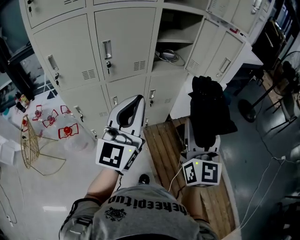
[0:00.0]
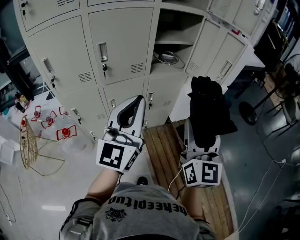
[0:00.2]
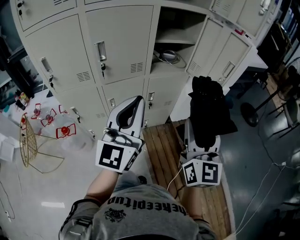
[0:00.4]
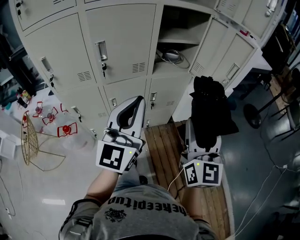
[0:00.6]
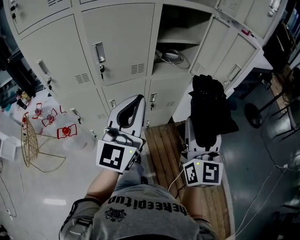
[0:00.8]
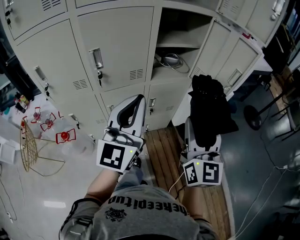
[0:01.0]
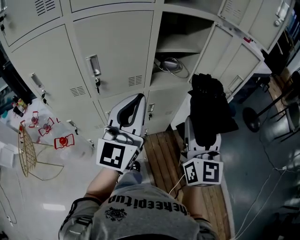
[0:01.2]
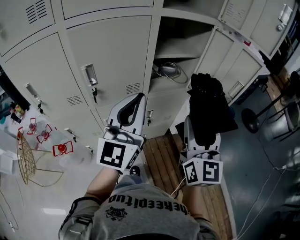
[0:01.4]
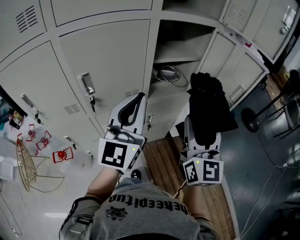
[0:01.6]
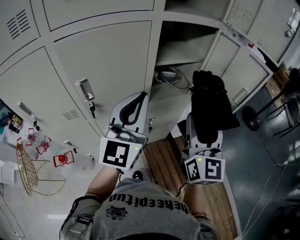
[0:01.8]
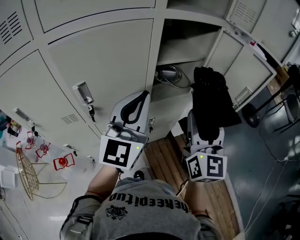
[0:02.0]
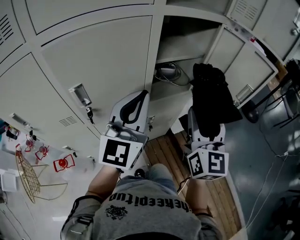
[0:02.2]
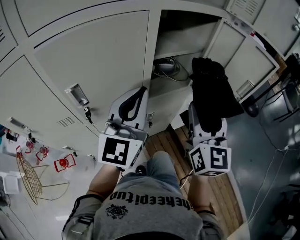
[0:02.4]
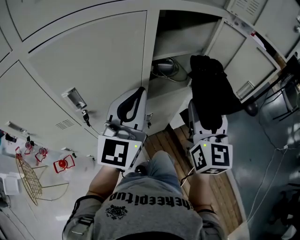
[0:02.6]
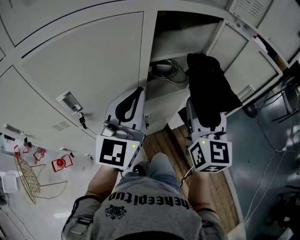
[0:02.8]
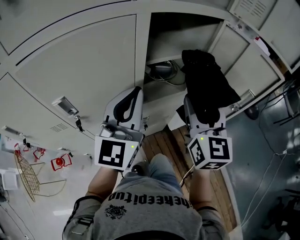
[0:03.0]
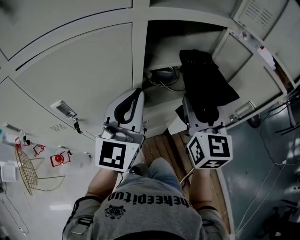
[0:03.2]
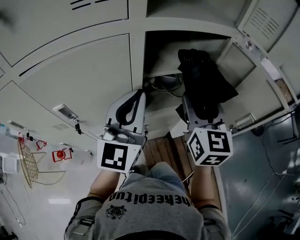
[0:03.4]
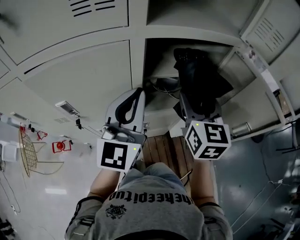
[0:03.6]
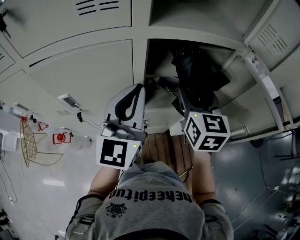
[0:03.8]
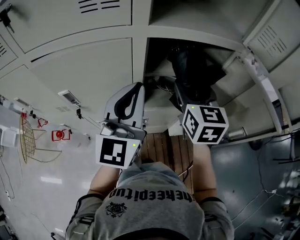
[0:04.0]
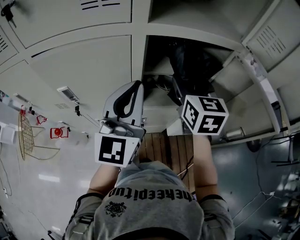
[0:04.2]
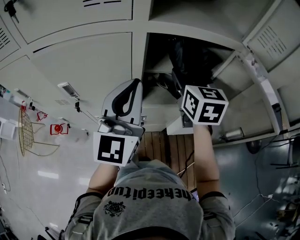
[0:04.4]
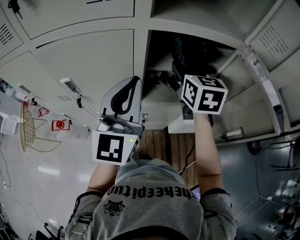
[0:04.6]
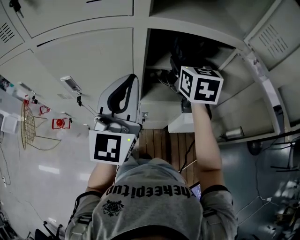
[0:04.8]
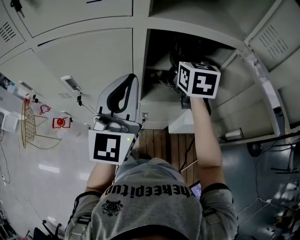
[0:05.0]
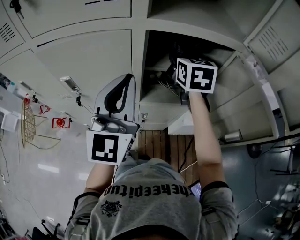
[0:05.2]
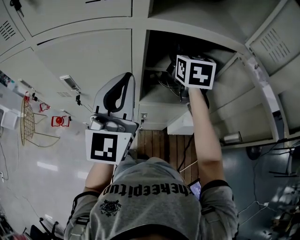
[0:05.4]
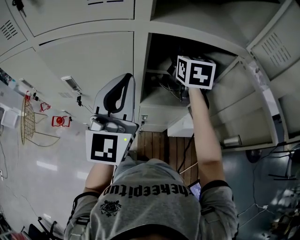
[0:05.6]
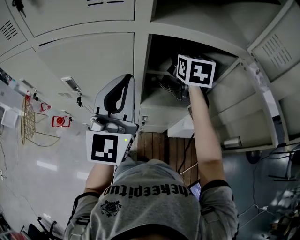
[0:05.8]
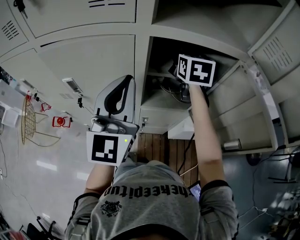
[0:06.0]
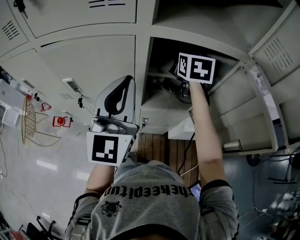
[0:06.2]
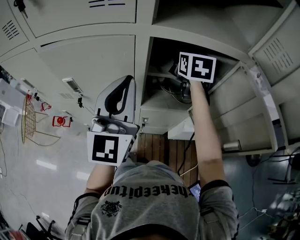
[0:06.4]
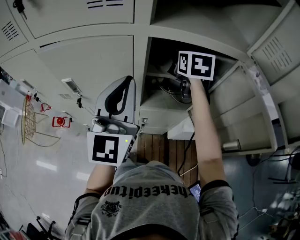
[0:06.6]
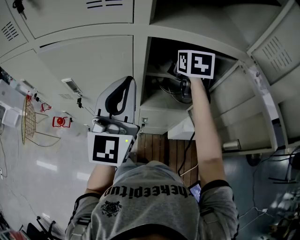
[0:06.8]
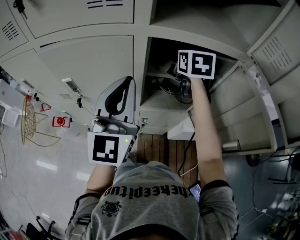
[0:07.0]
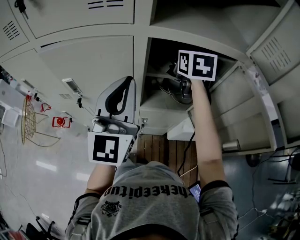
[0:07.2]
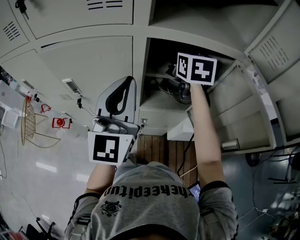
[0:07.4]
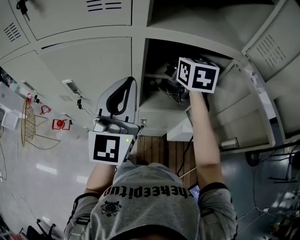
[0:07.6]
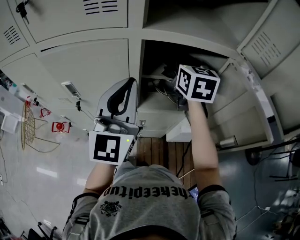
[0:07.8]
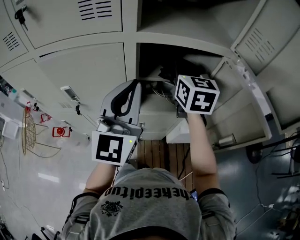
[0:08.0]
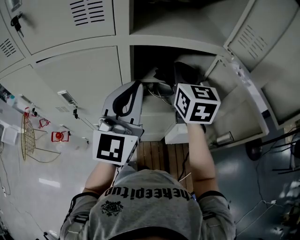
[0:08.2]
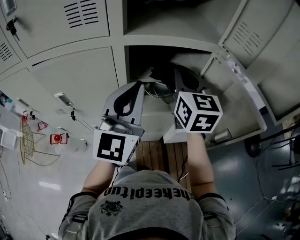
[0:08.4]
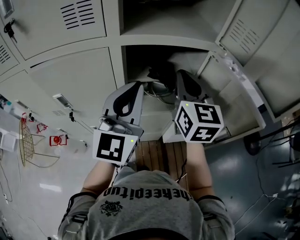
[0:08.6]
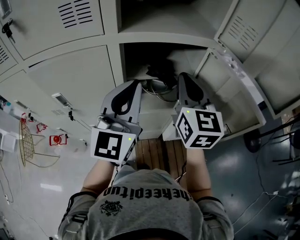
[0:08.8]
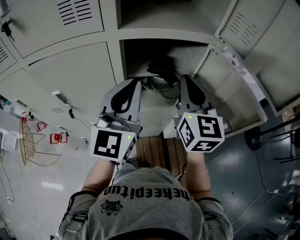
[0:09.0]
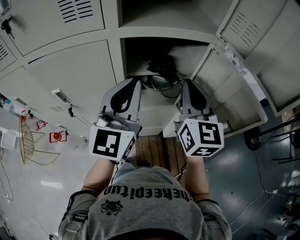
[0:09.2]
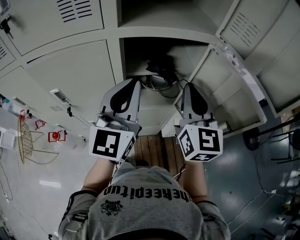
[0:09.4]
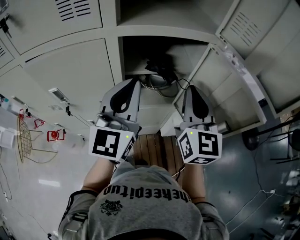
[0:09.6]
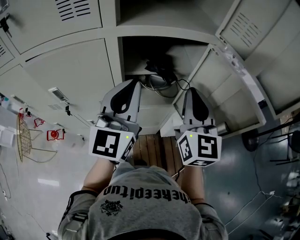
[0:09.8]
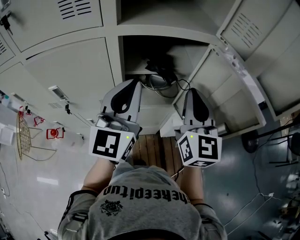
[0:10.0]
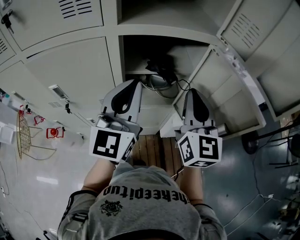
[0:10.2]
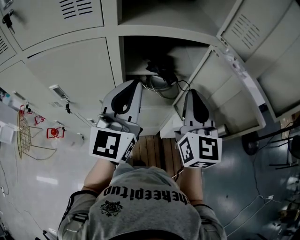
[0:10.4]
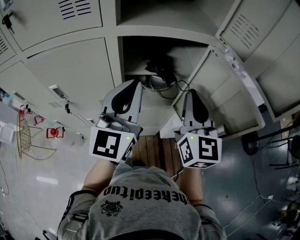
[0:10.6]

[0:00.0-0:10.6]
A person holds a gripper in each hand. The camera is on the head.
0:00.0 to 0:01.6: Both grippers travel together forward, some 25 cm.
0:01.6 to 0:03.0: The grippers both shift forward by roughly 15 cm.
0:03.0 to 0:04.6: The left gripper travels upward by approximately 5 cm, and turns by some 20 degrees; the right gripper travels forward by some 15 cm, and swivels roughly 30 degrees.
0:04.6 to 0:06.0: The right gripper shifts some 10 cm forward.
0:06.0 to 0:07.6: The grippers make only small movements.
0:07.6 to 0:09.0: The right gripper goes roughly 15 cm backward and to the right, swivels some 20 degrees, and closes its fingers. Meanwhile the left gripper heads to the right, covering approximately 5 cm.
0:09.0 to 0:10.6: The grippers make only small movements.

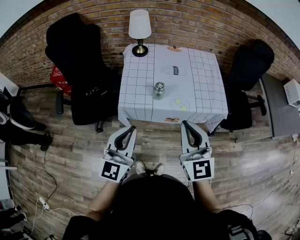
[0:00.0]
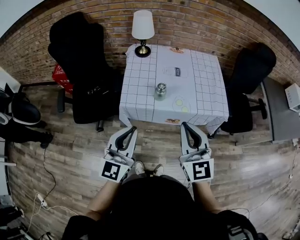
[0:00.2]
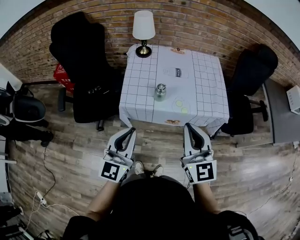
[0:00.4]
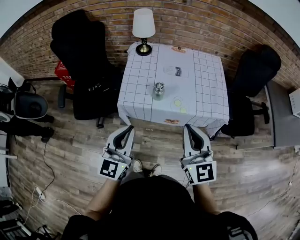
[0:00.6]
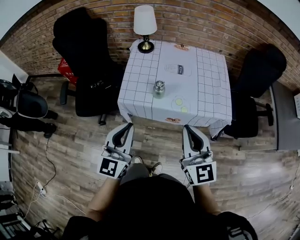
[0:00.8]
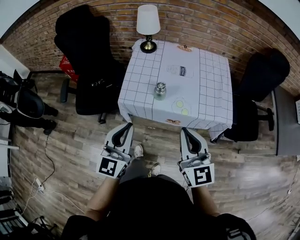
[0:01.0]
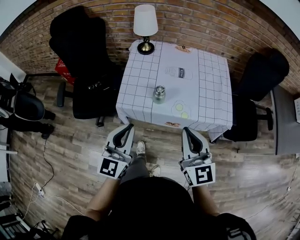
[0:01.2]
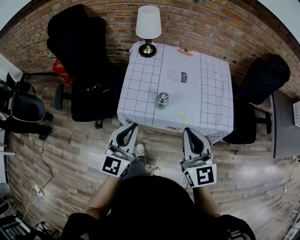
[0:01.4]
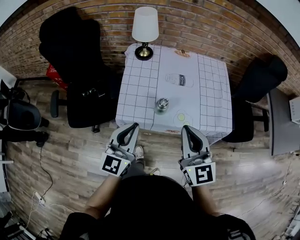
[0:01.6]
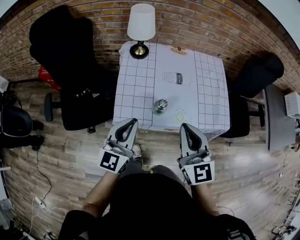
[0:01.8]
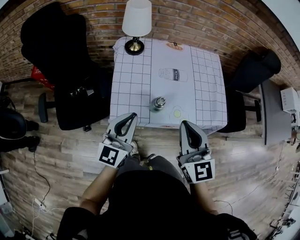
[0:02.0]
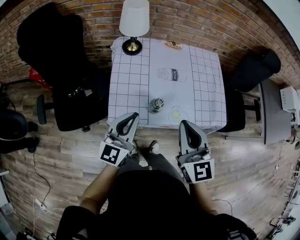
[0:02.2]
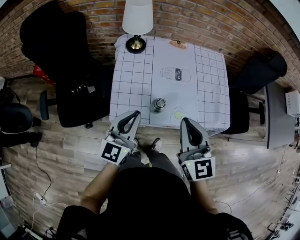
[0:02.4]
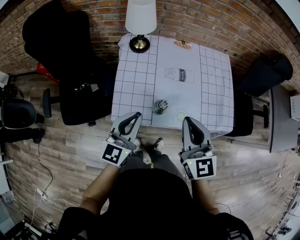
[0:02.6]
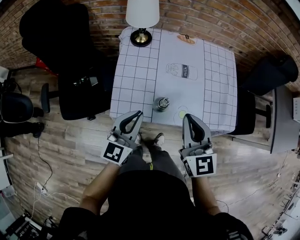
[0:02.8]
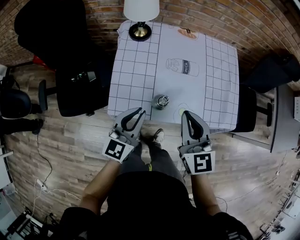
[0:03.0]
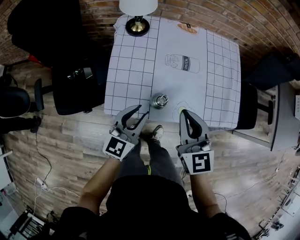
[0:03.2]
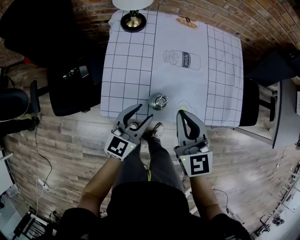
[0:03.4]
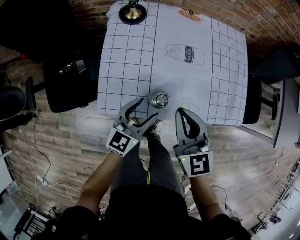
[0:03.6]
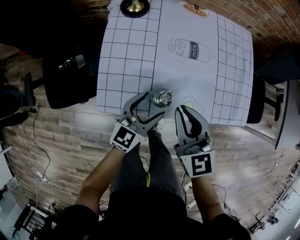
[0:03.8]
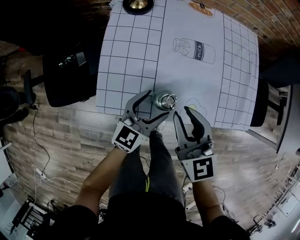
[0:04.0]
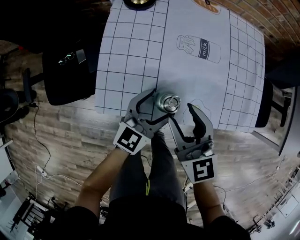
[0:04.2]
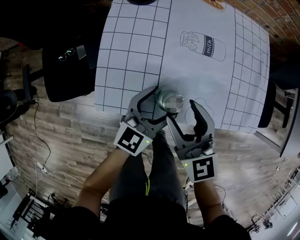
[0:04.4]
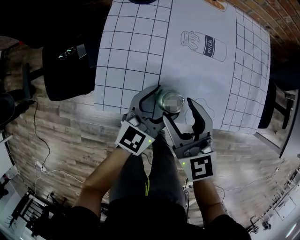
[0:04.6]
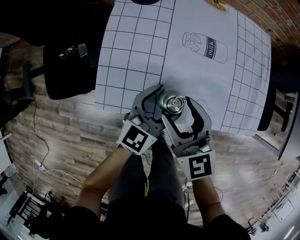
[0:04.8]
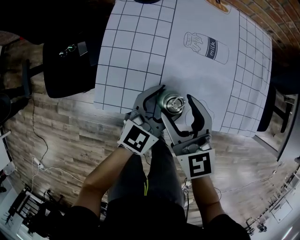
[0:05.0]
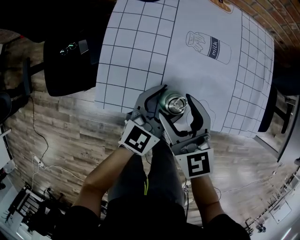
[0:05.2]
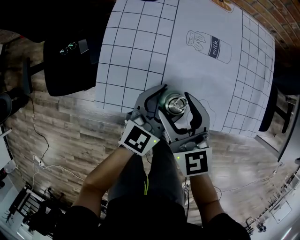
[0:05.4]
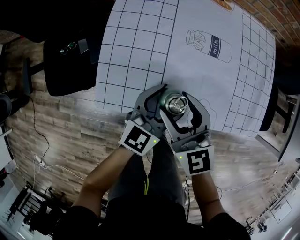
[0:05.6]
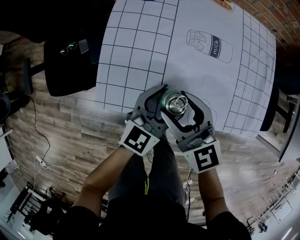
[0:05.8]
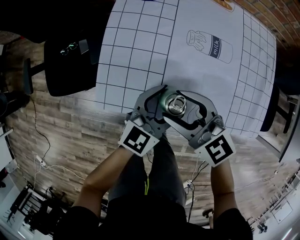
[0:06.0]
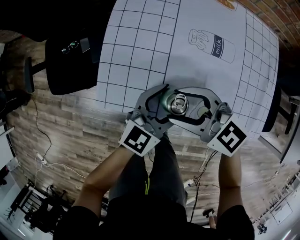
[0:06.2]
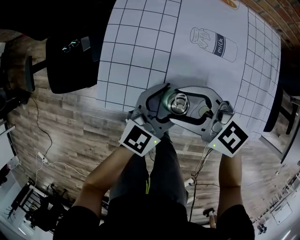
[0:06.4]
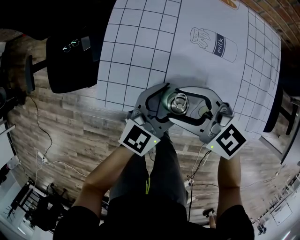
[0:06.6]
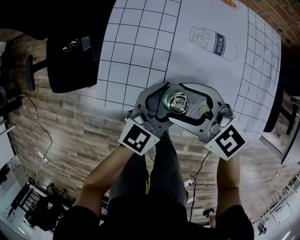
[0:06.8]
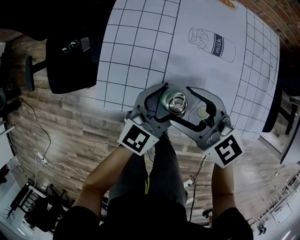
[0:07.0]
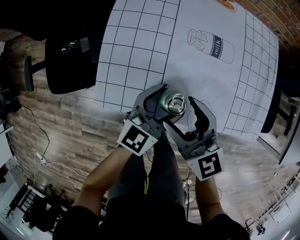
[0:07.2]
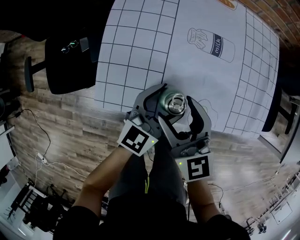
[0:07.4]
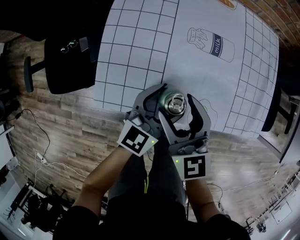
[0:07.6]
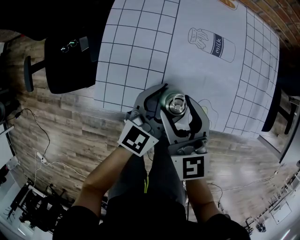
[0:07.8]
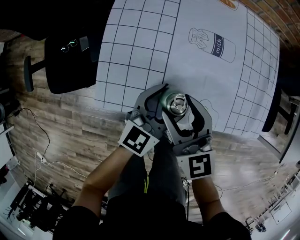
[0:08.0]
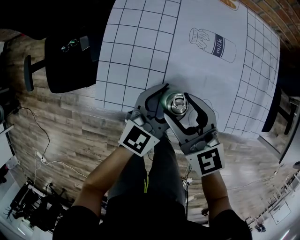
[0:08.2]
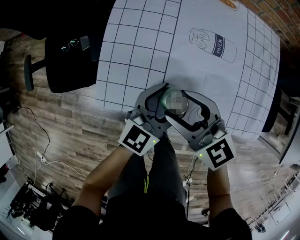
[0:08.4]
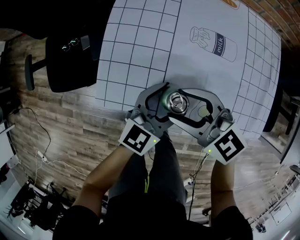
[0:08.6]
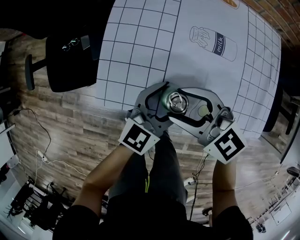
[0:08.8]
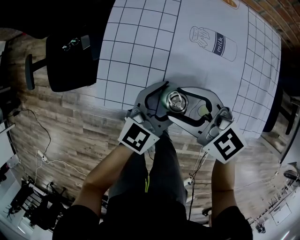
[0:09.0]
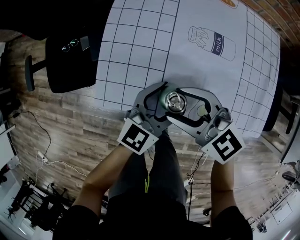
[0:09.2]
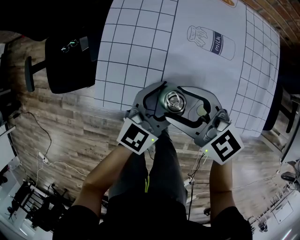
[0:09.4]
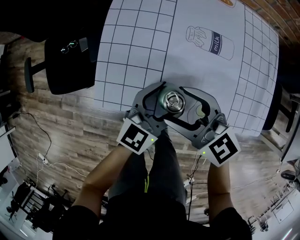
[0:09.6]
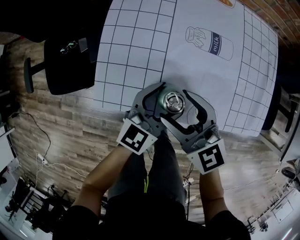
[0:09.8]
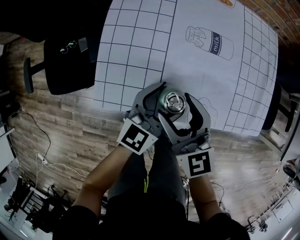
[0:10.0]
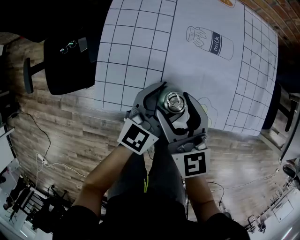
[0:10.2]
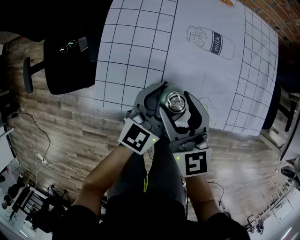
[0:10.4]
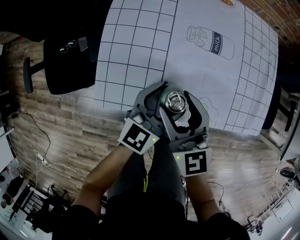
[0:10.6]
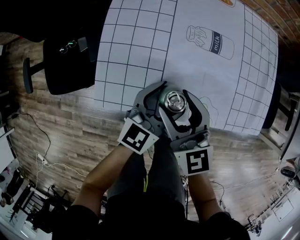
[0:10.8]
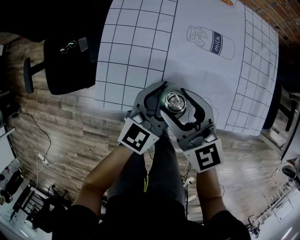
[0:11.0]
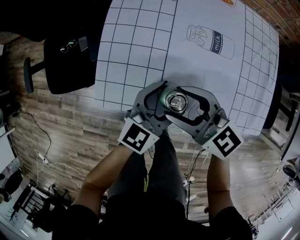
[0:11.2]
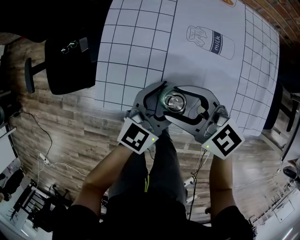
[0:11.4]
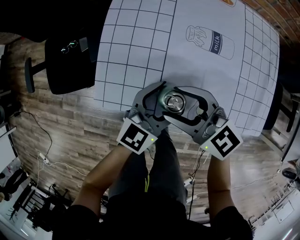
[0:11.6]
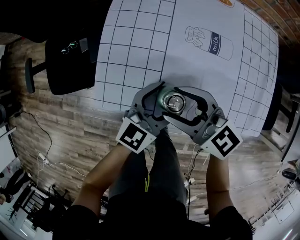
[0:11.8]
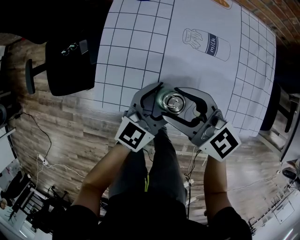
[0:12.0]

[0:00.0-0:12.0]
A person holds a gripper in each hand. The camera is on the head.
0:00.0 to 0:01.6: Both grippers move forward, roughly 15 cm.
0:01.6 to 0:03.0: Both grippers travel together forward and downward, roughly 15 cm.
0:03.0 to 0:04.4: The right gripper goes approximately 15 cm downward, and opens up, while the left gripper shifts roughly 15 cm downward, to the right and forward, and opens.
0:04.4 to 0:06.0: The right gripper changes its angle by approximately 30 degrees.
0:06.0 to 0:07.6: The right gripper changes its angle by about 40 degrees.
0:07.6 to 0:09.0: The right gripper rotates about 40 degrees.
0:09.0 to 0:10.4: The right gripper turns by roughly 40 degrees.
0:10.4 to 0:12.0: The right gripper swivels about 40 degrees.

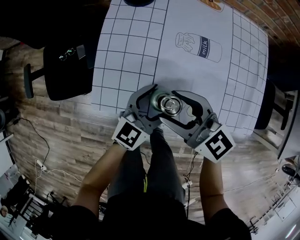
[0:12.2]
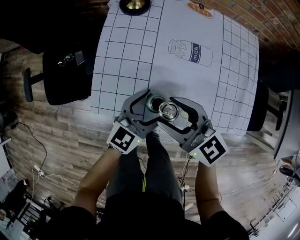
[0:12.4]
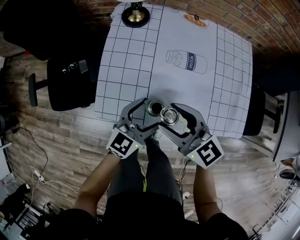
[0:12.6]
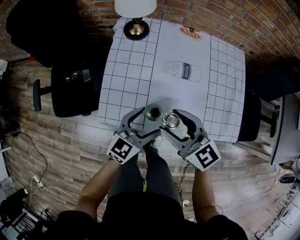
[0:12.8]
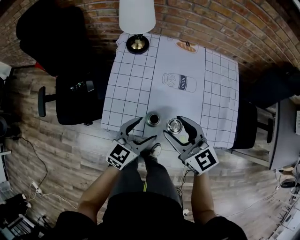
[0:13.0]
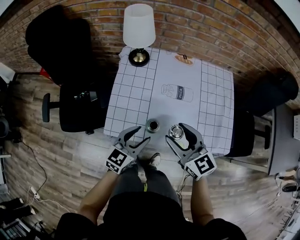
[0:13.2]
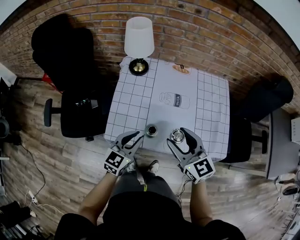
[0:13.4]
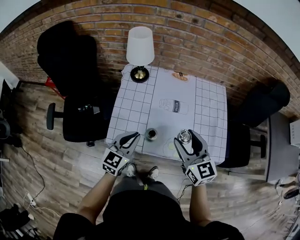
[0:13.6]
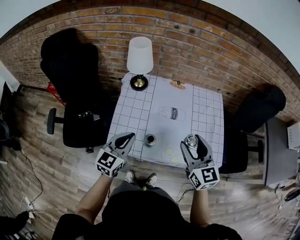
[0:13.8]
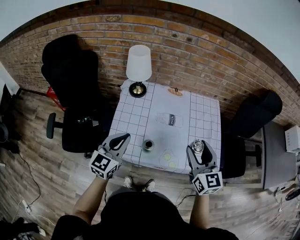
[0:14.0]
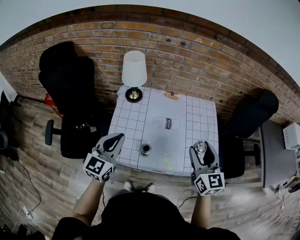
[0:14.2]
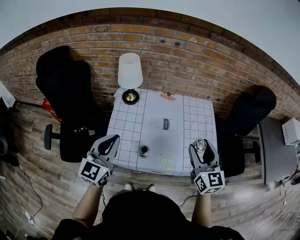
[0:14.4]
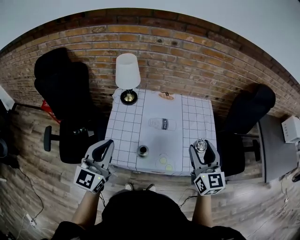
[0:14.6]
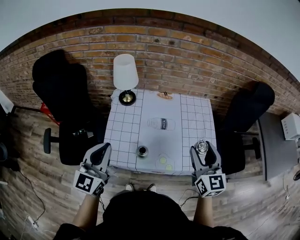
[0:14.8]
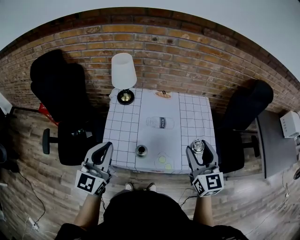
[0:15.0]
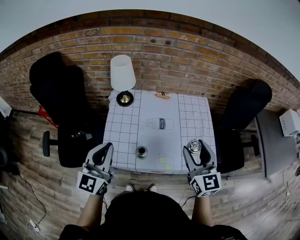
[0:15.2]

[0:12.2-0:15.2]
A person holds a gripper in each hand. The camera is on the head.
0:12.2 to 0:13.8: The right gripper travels upward and to the right by some 20 cm, and swivels some 40 degrees. Meanwhile the left gripper goes some 20 cm upward and to the left, and closes.
0:13.8 to 0:15.2: The right gripper is displaced upward by about 5 cm. Meanwhile the left gripper moves upward, some 10 cm.
